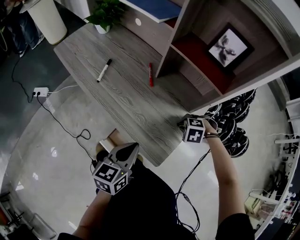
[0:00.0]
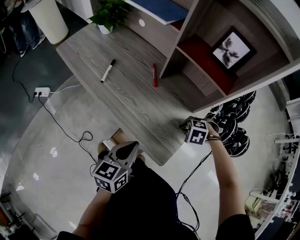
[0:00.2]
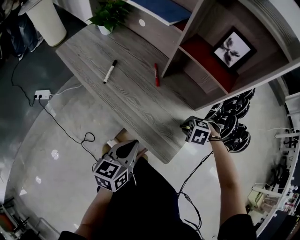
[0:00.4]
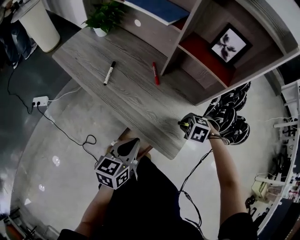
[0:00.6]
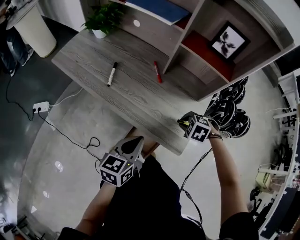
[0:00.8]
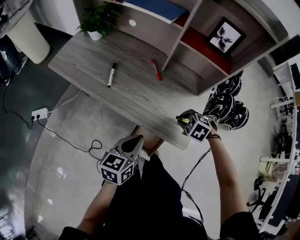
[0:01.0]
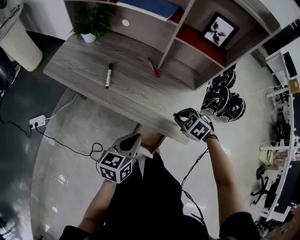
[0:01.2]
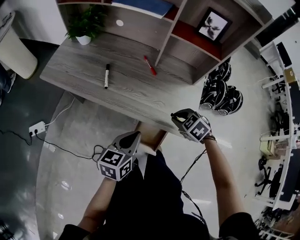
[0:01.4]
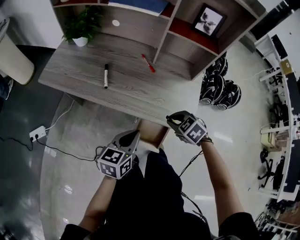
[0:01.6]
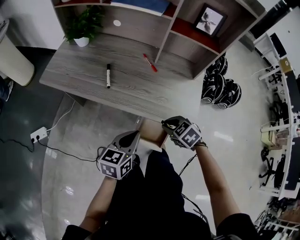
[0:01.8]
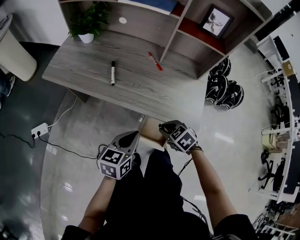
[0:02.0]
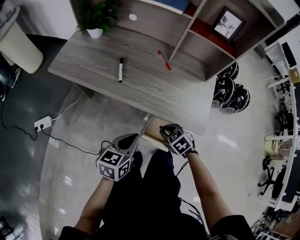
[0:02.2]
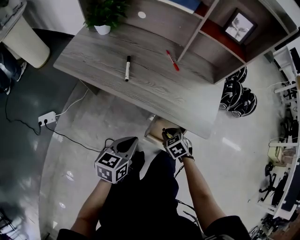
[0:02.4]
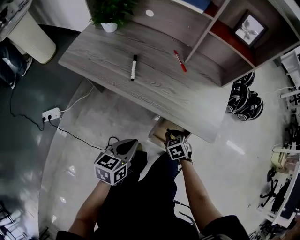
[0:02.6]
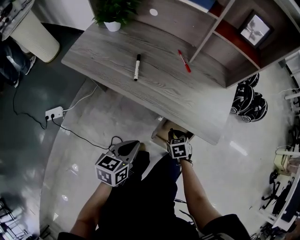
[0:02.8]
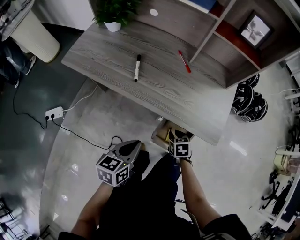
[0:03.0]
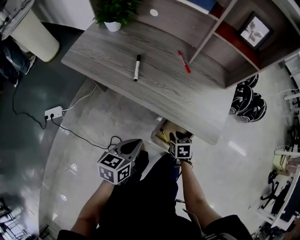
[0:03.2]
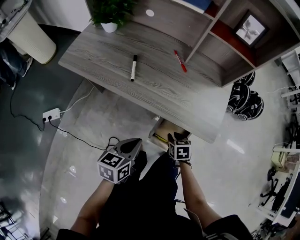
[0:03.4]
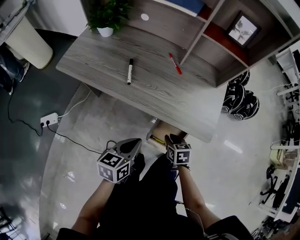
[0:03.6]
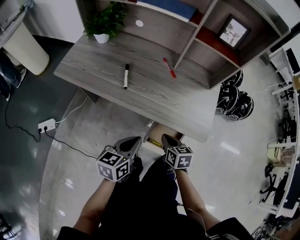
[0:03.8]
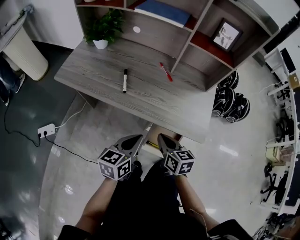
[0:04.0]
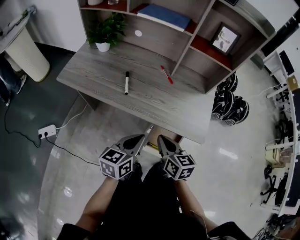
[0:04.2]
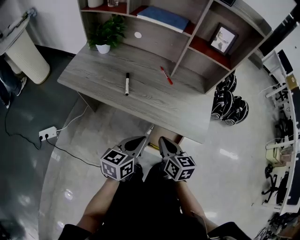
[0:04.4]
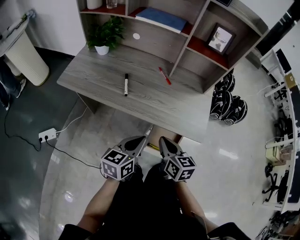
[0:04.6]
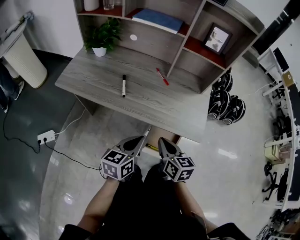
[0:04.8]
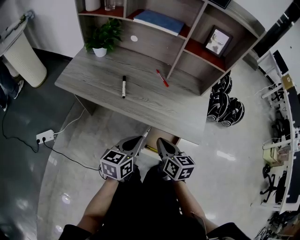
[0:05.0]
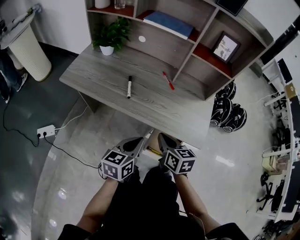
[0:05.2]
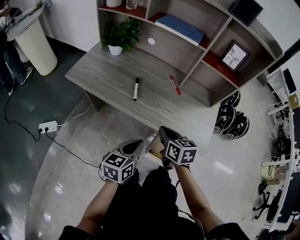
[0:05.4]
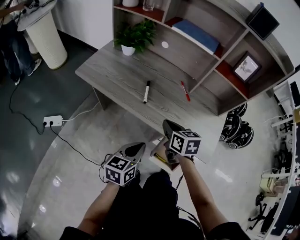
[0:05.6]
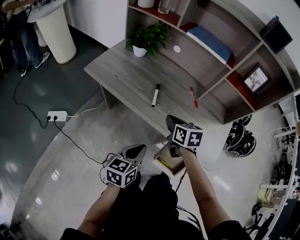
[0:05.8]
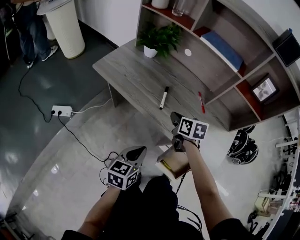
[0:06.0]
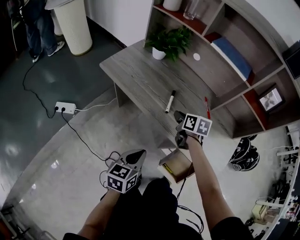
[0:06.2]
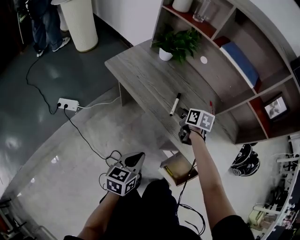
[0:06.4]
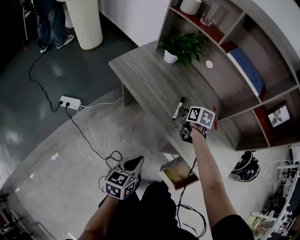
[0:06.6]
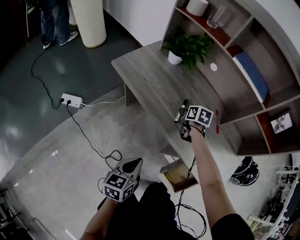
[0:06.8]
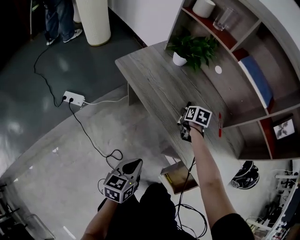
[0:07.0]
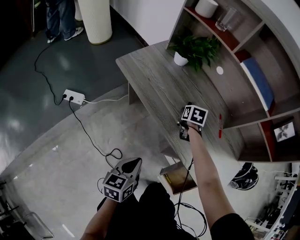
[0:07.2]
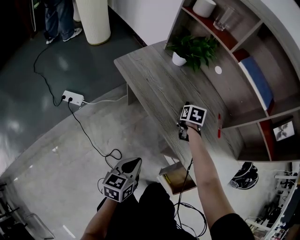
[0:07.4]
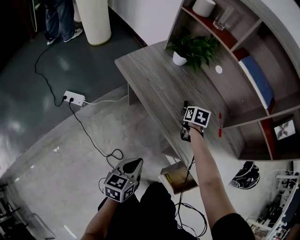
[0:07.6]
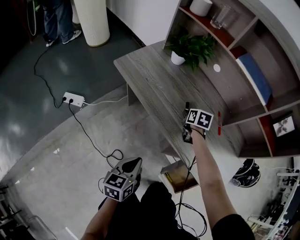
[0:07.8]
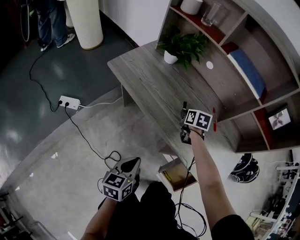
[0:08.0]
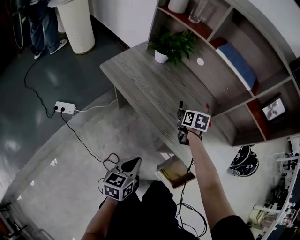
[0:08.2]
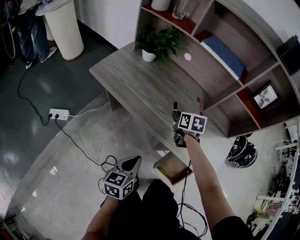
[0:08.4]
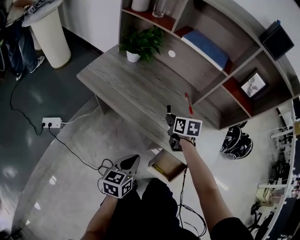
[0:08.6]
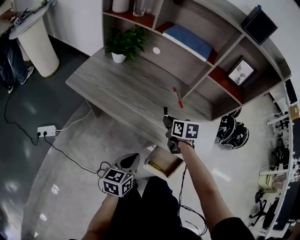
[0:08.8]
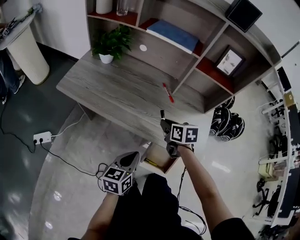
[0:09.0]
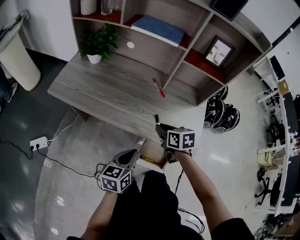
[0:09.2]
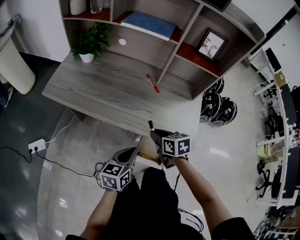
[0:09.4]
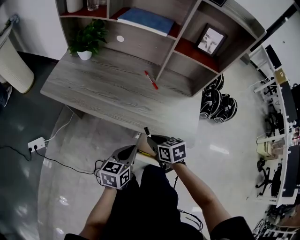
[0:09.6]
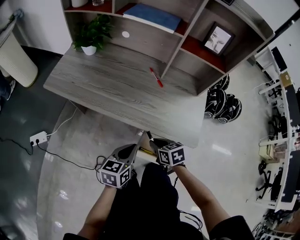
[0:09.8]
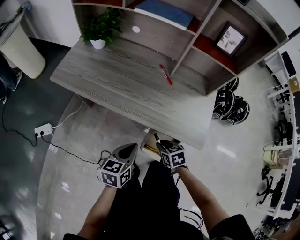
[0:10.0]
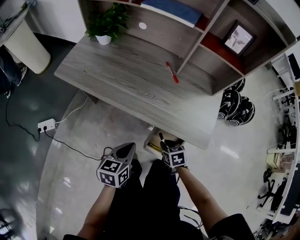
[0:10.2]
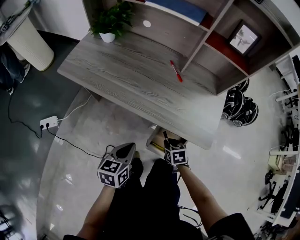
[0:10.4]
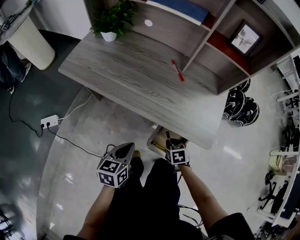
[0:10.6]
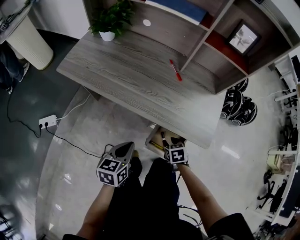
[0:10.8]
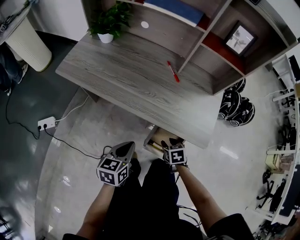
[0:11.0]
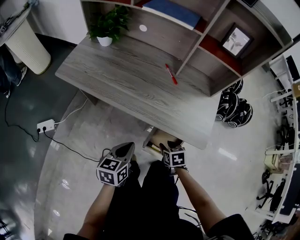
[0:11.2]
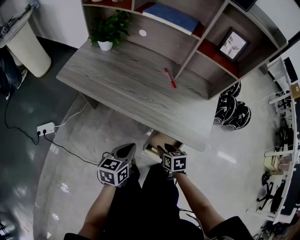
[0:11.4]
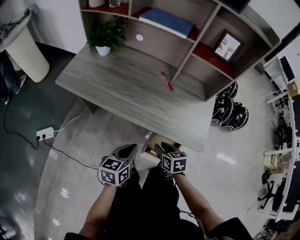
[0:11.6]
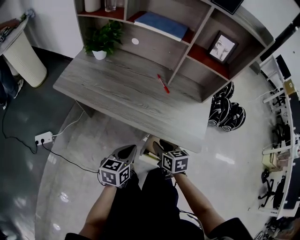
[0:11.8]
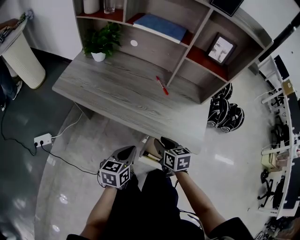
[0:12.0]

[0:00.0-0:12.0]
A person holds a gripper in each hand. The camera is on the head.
0:00.0 to 0:01.6: The left gripper changes place by approximately 15 cm, and swivels about 20 degrees. Meanwhile the right gripper shifts by approximately 25 cm, and rolls clockwise, seen from behind, by approximately 50 degrees.
0:01.6 to 0:03.0: The left gripper moves to the left and downward, approximately 10 cm; the right gripper moves downward, roughly 15 cm, and changes its angle by approximately 40 degrees.
0:03.0 to 0:04.4: The left gripper heads upward, covering some 5 cm; the right gripper shifts roughly 20 cm upward, tips its fingers upward by roughly 30 degrees, and closes its fingers.
0:04.4 to 0:06.0: The left gripper goes approximately 10 cm to the left, and rotates about 20 degrees. The right gripper moves forward and to the left, roughly 25 cm, and swivels approximately 20 degrees.
0:06.0 to 0:07.6: The right gripper goes approximately 15 cm forward and downward. Meanwhile the left gripper is displaced to the left by roughly 5 cm.
0:07.6 to 0:09.0: The right gripper shifts approximately 25 cm backward, to the right and upward; the left gripper shifts roughly 15 cm to the right, and turns by approximately 20 degrees.
0:09.0 to 0:10.4: The right gripper heads downward and backward, covering about 25 cm, and rotates roughly 20 degrees.
0:10.4 to 0:12.0: The right gripper heads upward, covering about 15 cm, and rotates about 20 degrees.

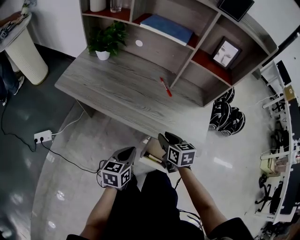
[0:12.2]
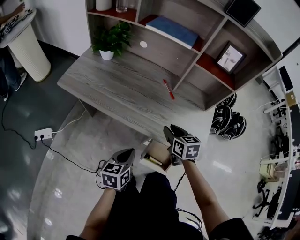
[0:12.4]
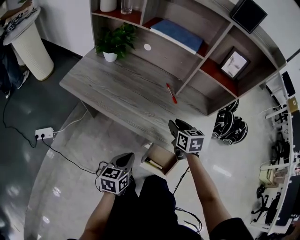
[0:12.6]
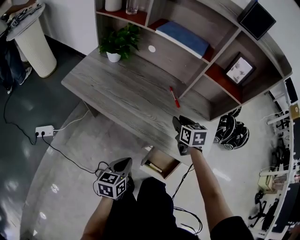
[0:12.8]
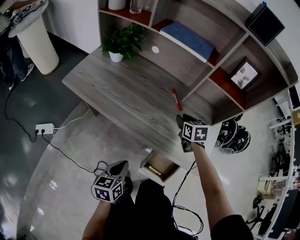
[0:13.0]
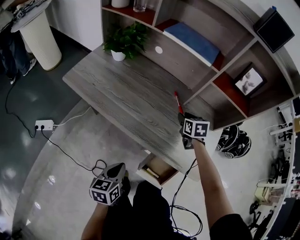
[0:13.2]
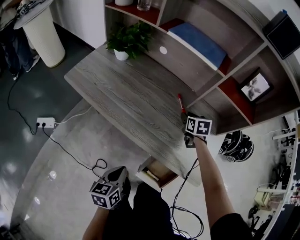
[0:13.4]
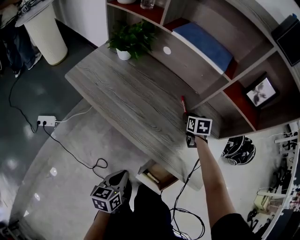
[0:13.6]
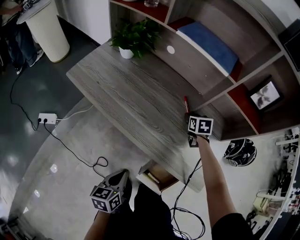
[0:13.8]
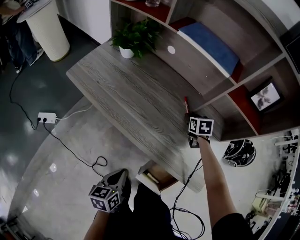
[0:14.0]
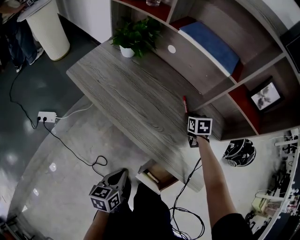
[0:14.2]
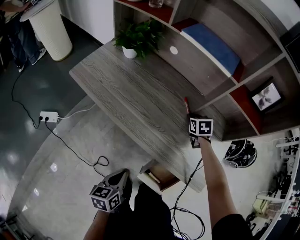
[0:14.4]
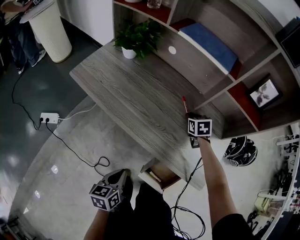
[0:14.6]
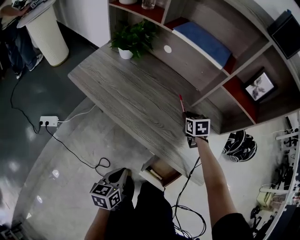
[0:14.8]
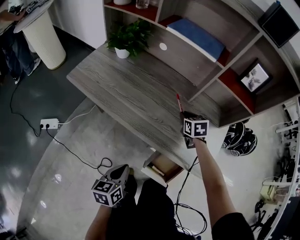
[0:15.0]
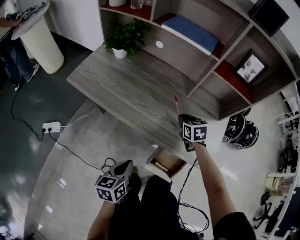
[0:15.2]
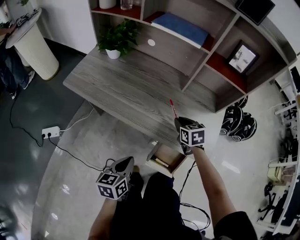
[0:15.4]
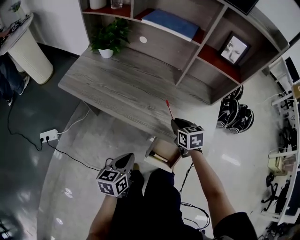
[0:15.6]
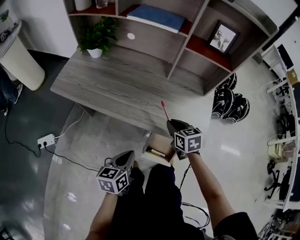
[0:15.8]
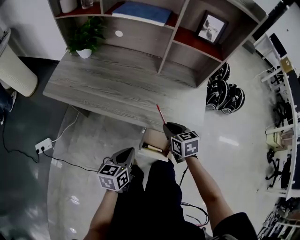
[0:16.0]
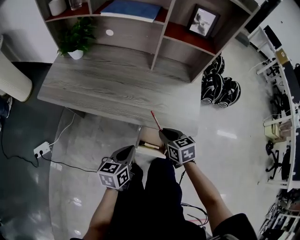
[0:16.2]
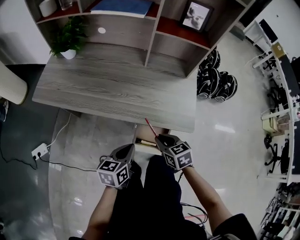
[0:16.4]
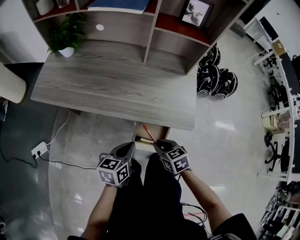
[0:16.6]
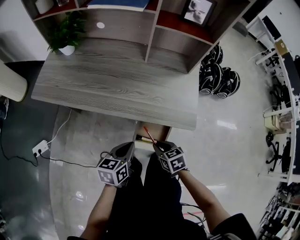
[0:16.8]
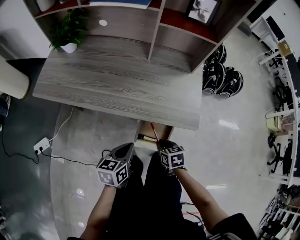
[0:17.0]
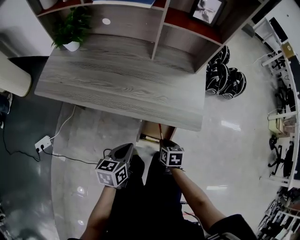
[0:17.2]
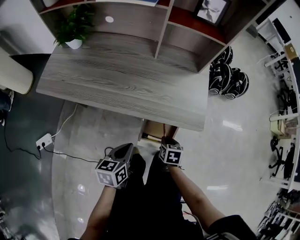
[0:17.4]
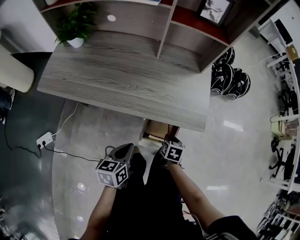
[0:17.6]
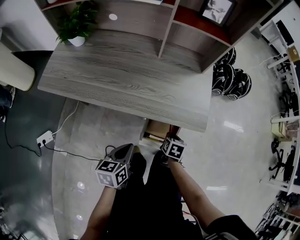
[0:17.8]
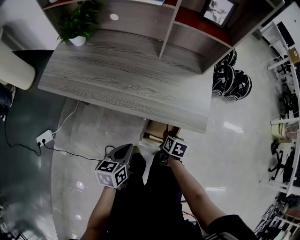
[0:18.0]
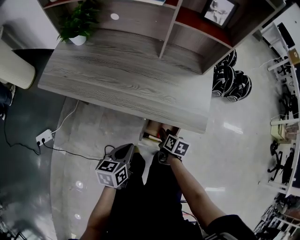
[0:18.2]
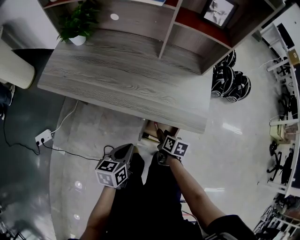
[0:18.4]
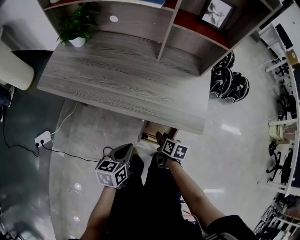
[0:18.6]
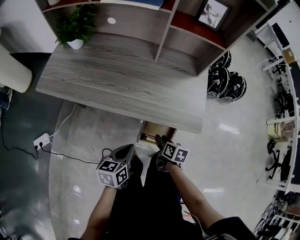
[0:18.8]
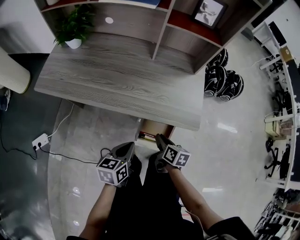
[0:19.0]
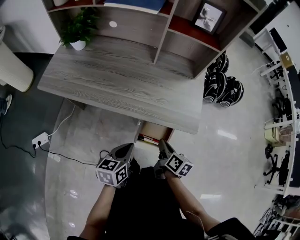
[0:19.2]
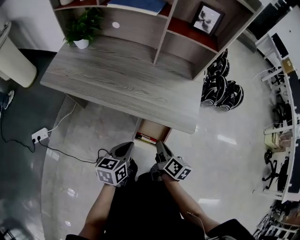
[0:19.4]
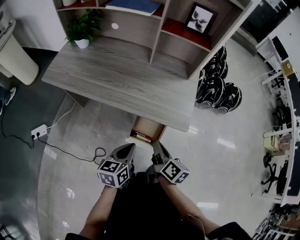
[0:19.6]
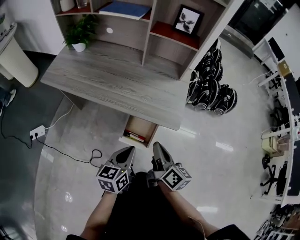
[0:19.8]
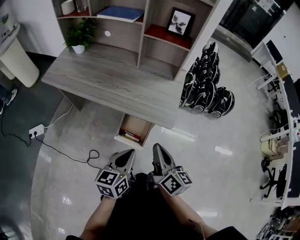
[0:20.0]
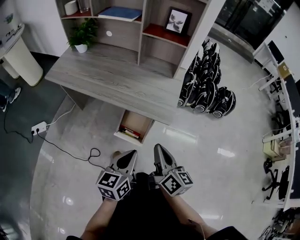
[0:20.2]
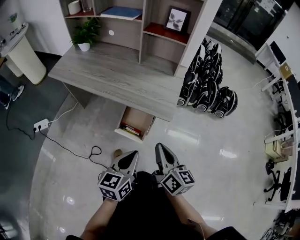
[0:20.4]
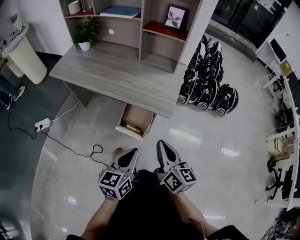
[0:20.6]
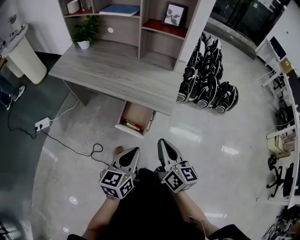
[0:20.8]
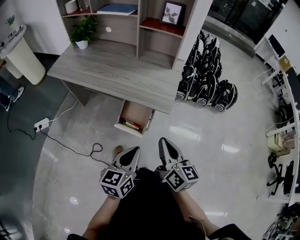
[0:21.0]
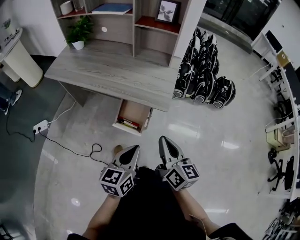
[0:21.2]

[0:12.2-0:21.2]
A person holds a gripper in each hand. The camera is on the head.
0:12.2 to 0:13.8: The right gripper heads forward, covering roughly 25 cm. Meanwhile the left gripper changes place by about 5 cm, and turns by about 20 degrees.
0:13.8 to 0:15.2: The right gripper is displaced backward by roughly 10 cm.
0:15.2 to 0:16.6: The left gripper goes about 10 cm to the right, and swivels roughly 20 degrees. The right gripper heads backward, covering some 30 cm.
0:16.6 to 0:18.2: The right gripper heads downward and forward, covering some 10 cm, and rolls clockwise, seen from behind, by about 40 degrees.
0:18.2 to 0:19.8: The left gripper travels to the right and upward by about 15 cm; the right gripper goes approximately 25 cm upward and backward, tilts its fingers roughly 40 degrees upward, and closes up.
0:19.8 to 0:21.2: The left gripper shifts some 15 cm backward and to the right. Meanwhile the right gripper goes approximately 10 cm to the right and backward.

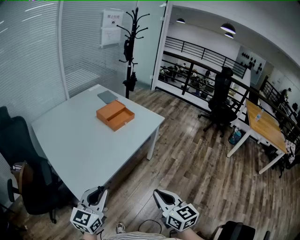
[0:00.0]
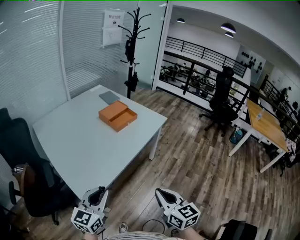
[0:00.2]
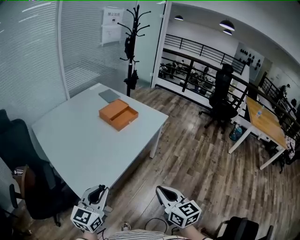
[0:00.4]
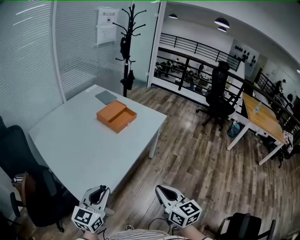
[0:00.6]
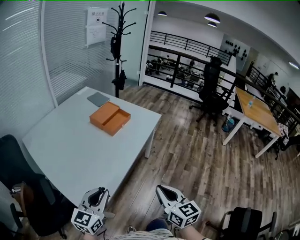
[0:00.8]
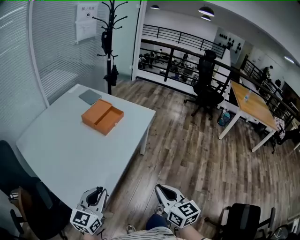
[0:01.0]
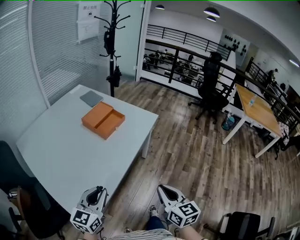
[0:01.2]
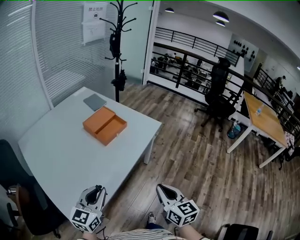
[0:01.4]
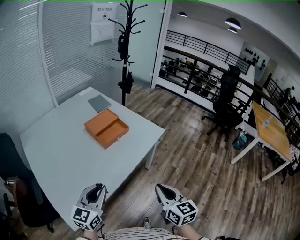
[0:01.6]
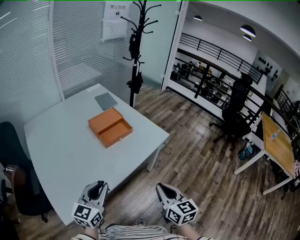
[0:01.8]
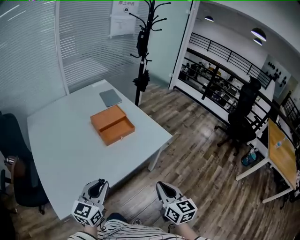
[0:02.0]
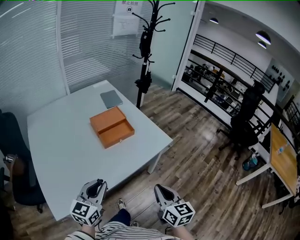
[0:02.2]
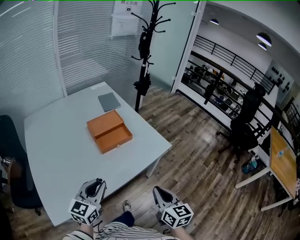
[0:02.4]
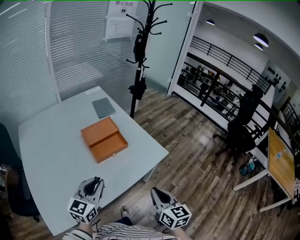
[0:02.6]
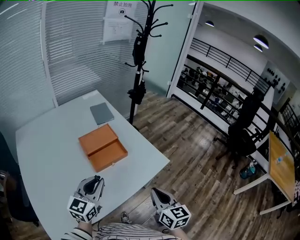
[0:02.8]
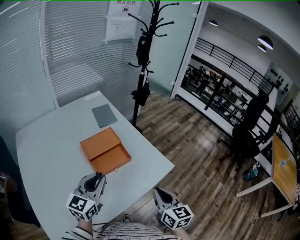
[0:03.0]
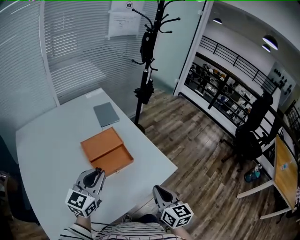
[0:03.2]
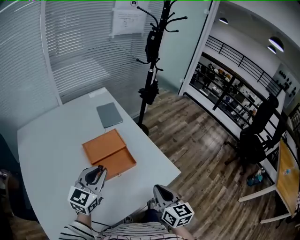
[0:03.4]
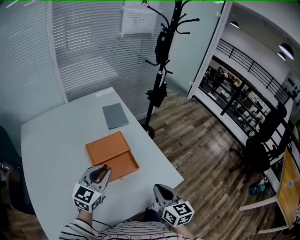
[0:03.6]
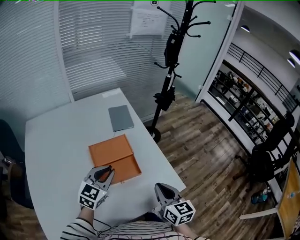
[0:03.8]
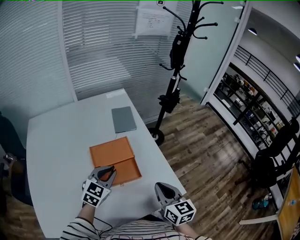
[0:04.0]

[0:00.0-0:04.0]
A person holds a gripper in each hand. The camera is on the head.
0:00.0 to 0:01.4: Both grippers travel together forward, about 20 cm.
0:01.4 to 0:02.6: The two grippers go approximately 25 cm forward and to the right.
0:02.6 to 0:04.0: The two grippers go approximately 30 cm forward. The left gripper changes its angle by about 20 degrees.
